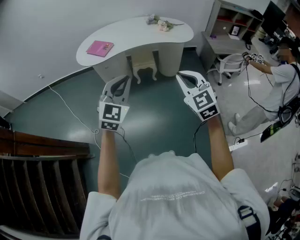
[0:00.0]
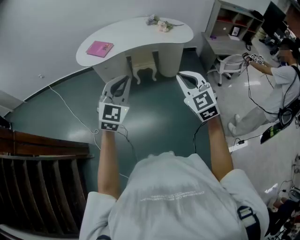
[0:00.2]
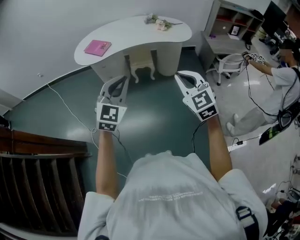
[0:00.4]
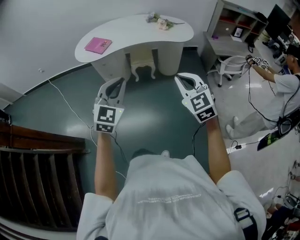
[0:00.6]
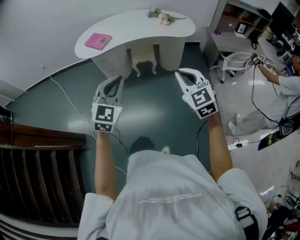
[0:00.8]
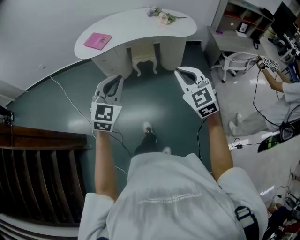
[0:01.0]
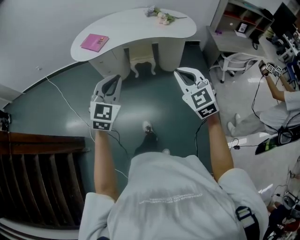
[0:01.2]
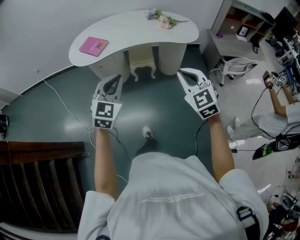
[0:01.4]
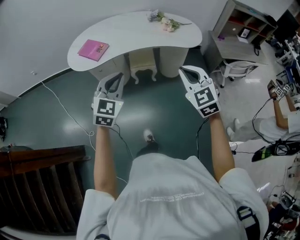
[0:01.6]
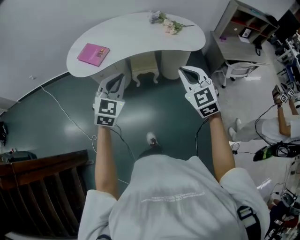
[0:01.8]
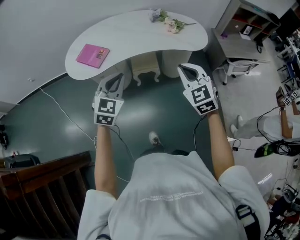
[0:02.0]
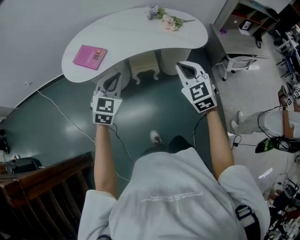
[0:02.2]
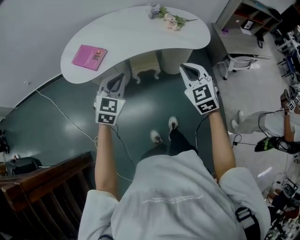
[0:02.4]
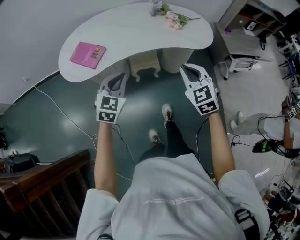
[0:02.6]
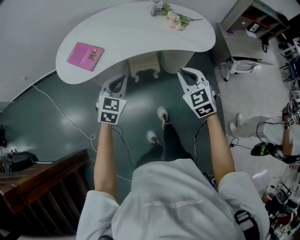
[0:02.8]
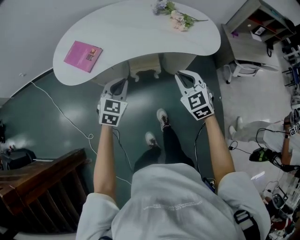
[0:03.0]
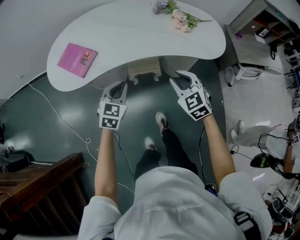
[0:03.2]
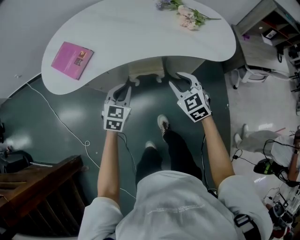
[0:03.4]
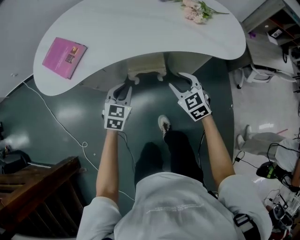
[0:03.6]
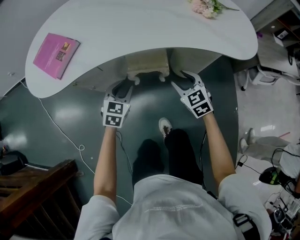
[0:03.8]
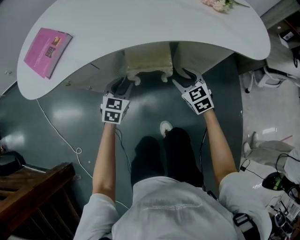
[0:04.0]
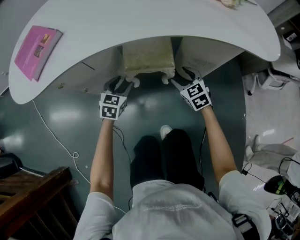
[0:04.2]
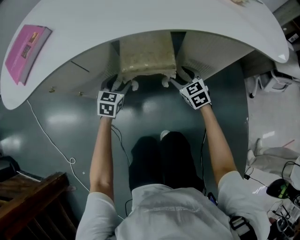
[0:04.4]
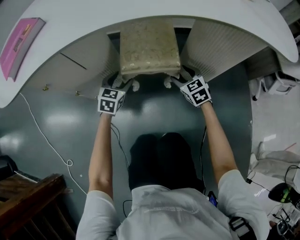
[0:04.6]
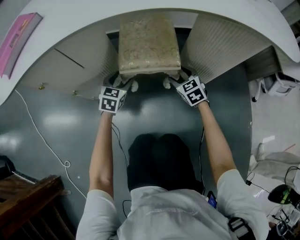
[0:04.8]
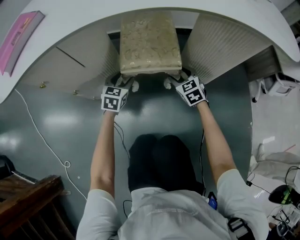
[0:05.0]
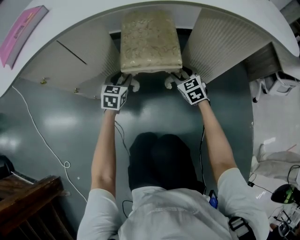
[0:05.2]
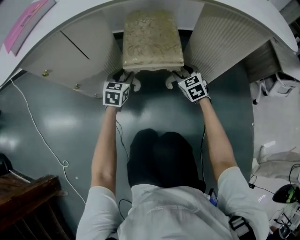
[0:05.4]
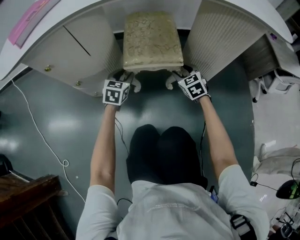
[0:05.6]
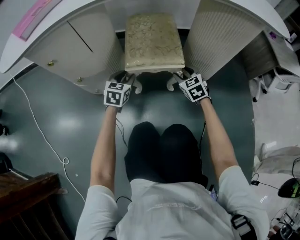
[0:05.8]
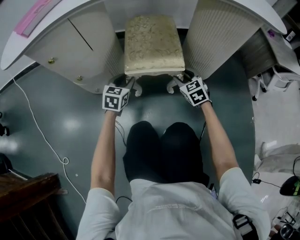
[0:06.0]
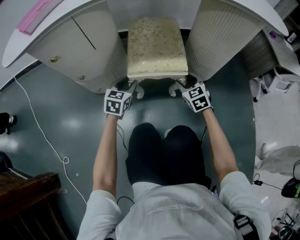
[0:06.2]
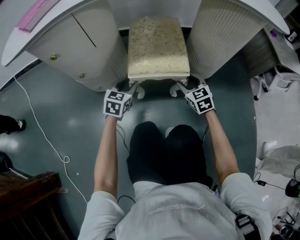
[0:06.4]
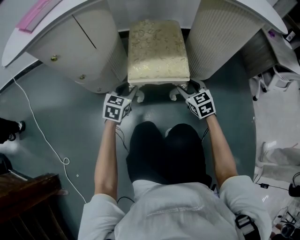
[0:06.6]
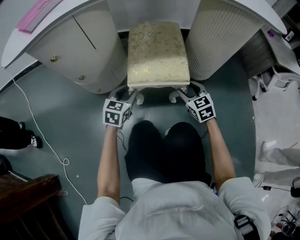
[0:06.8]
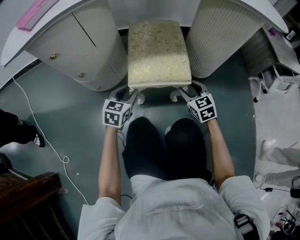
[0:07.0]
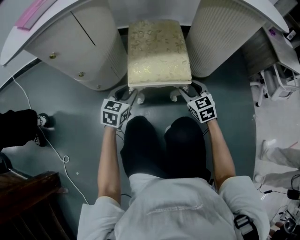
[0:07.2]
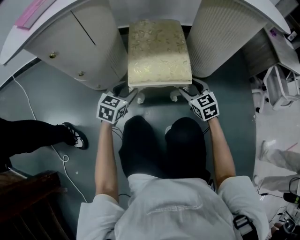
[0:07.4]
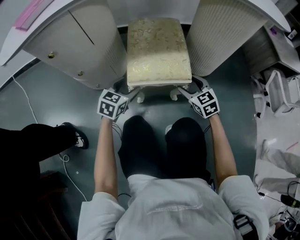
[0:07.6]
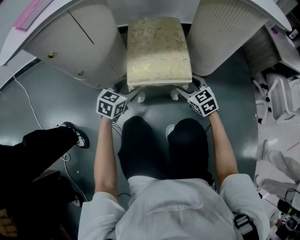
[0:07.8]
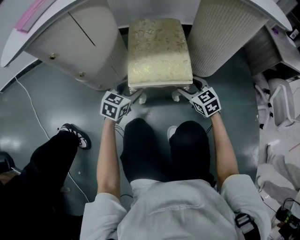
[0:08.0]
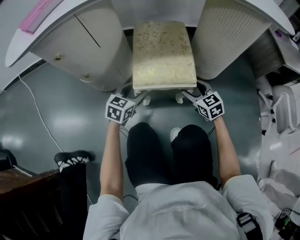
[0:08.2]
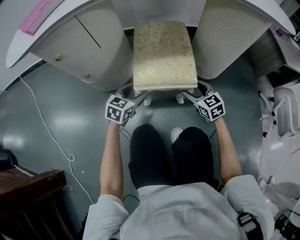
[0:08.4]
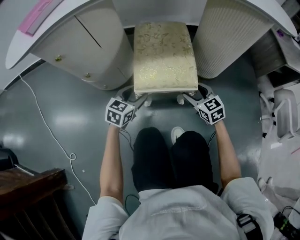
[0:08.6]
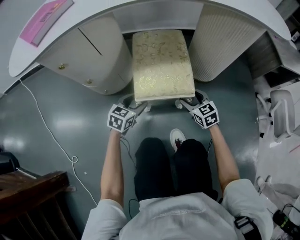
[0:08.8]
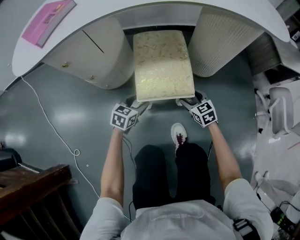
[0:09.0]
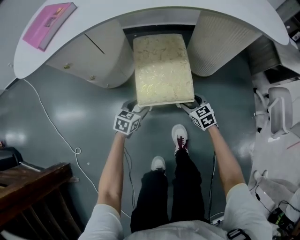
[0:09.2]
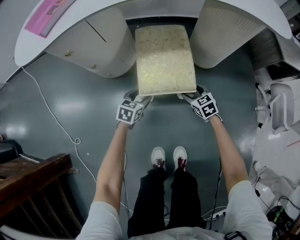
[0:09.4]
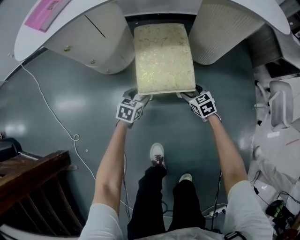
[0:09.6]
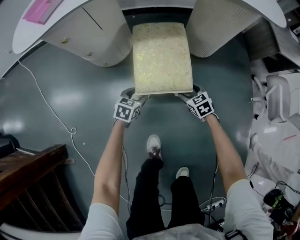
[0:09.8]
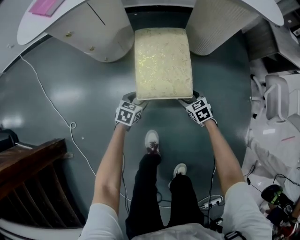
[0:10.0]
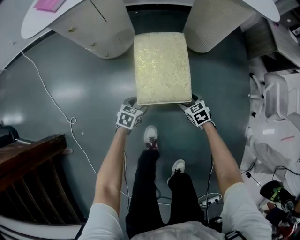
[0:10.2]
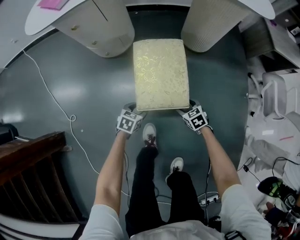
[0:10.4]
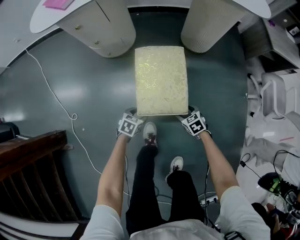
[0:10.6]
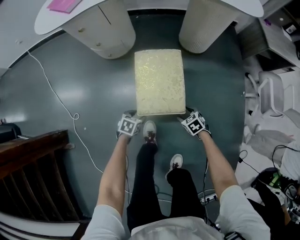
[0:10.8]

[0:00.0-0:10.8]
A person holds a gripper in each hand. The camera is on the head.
0:00.0 to 0:01.6: The grippers both shift forward by approximately 20 cm.
0:01.6 to 0:03.0: The two grippers go roughly 25 cm forward and downward.
0:03.0 to 0:04.6: The grippers both shift downward and forward by about 60 cm. The right gripper opens its fingers, while the left gripper opens.
0:04.6 to 0:06.2: Both grippers move backward, roughly 10 cm. The left gripper closes its fingers.
0:06.2 to 0:07.8: The left gripper opens its fingers.
0:07.8 to 0:09.2: Both grippers travel together backward, approximately 10 cm.
0:09.2 to 0:10.8: The grippers both shift backward by approximately 30 cm. The left gripper rotates about 20 degrees, while the right gripper turns by roughly 20 degrees.

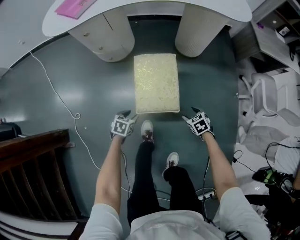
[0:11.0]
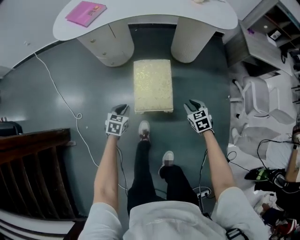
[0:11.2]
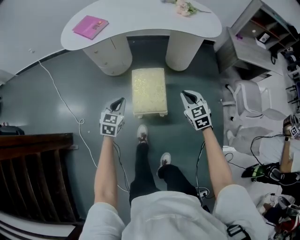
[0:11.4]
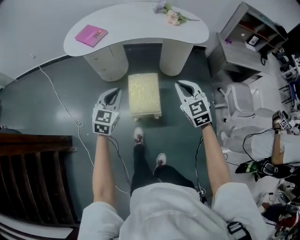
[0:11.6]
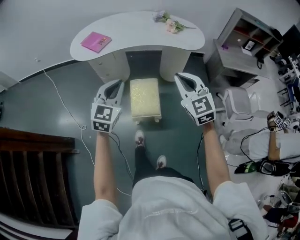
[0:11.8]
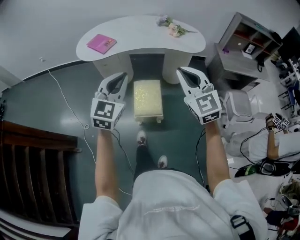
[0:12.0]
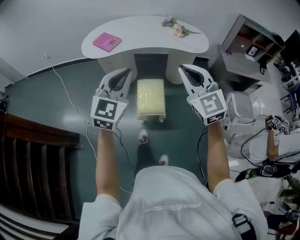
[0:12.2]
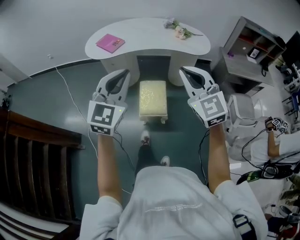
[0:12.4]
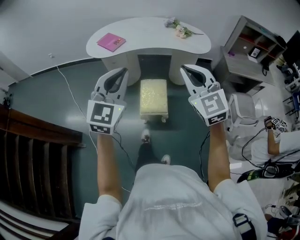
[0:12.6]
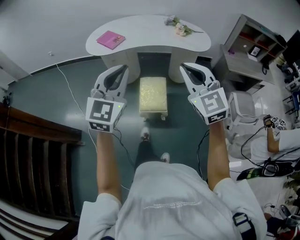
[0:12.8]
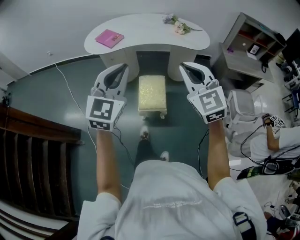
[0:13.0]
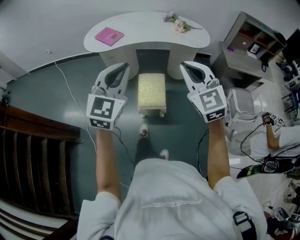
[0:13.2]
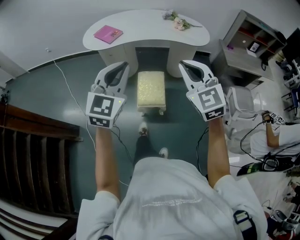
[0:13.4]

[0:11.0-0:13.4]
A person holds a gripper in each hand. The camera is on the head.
0:11.0 to 0:12.2: Both grippers move upward, roughly 70 cm. The right gripper tips its fingers upward by roughly 60 degrees, and closes. The left gripper points its fingers roughly 50 degrees further upward, and closes up.
0:12.2 to 0:13.4: The grippers move only a little.

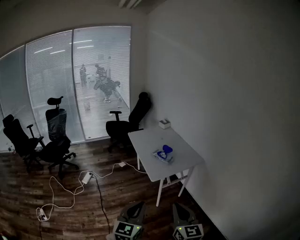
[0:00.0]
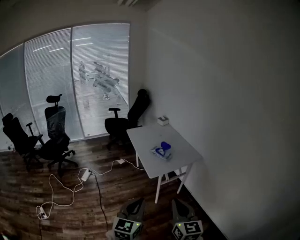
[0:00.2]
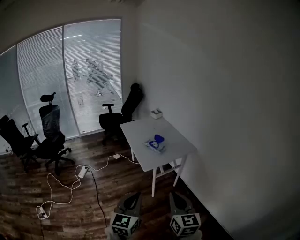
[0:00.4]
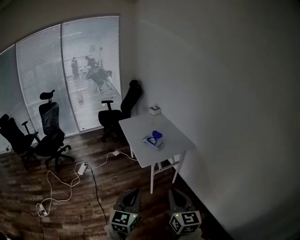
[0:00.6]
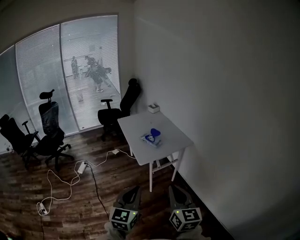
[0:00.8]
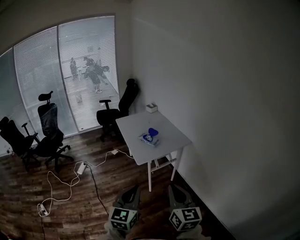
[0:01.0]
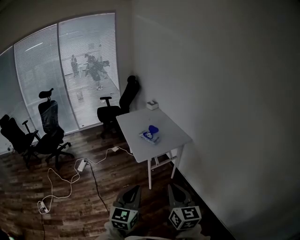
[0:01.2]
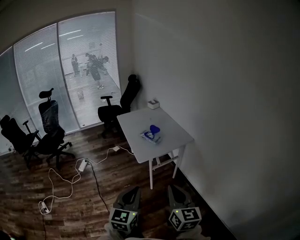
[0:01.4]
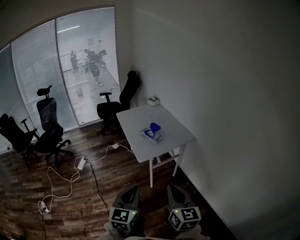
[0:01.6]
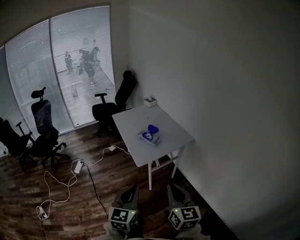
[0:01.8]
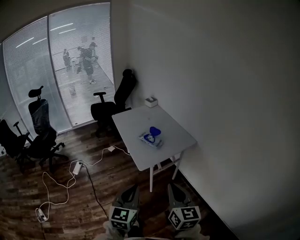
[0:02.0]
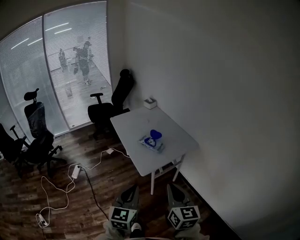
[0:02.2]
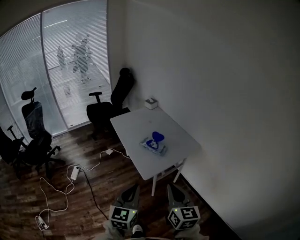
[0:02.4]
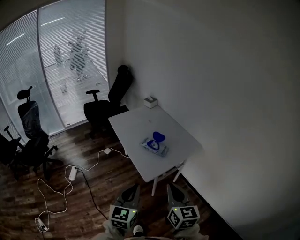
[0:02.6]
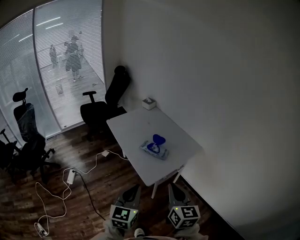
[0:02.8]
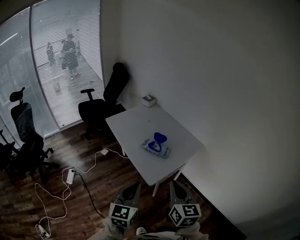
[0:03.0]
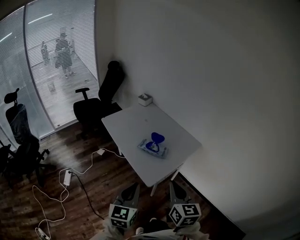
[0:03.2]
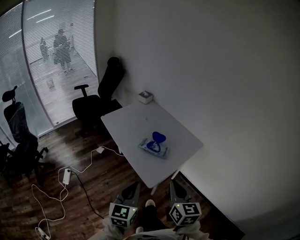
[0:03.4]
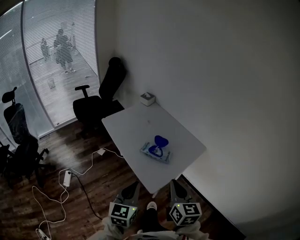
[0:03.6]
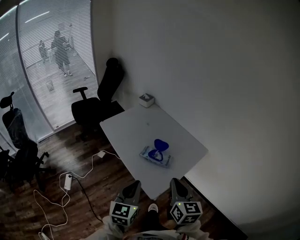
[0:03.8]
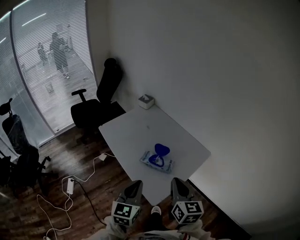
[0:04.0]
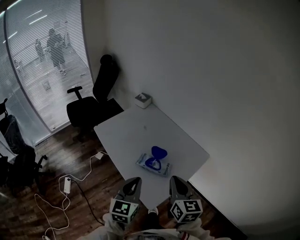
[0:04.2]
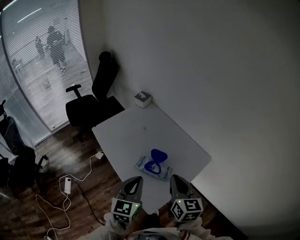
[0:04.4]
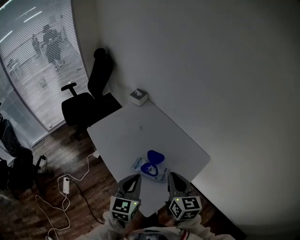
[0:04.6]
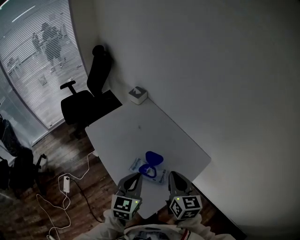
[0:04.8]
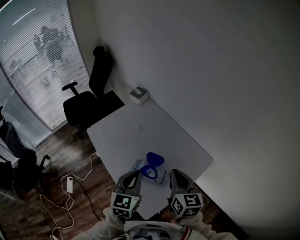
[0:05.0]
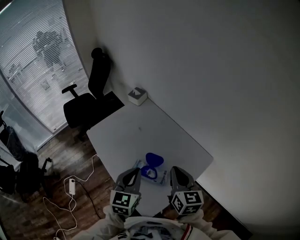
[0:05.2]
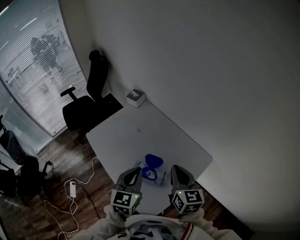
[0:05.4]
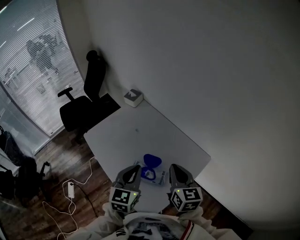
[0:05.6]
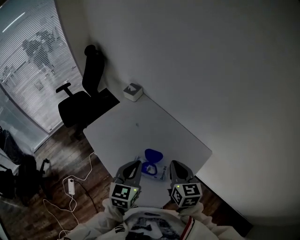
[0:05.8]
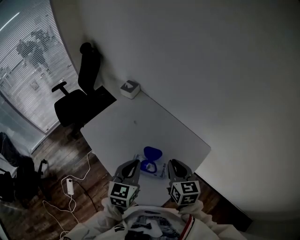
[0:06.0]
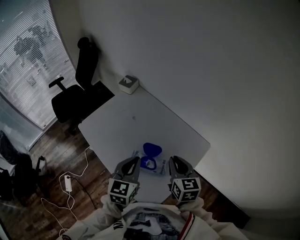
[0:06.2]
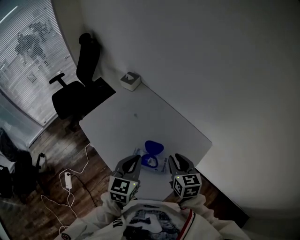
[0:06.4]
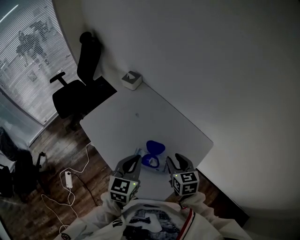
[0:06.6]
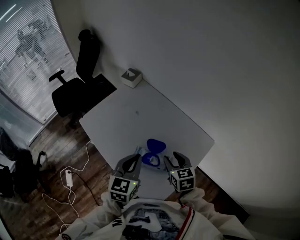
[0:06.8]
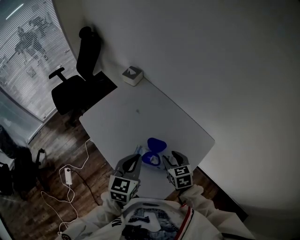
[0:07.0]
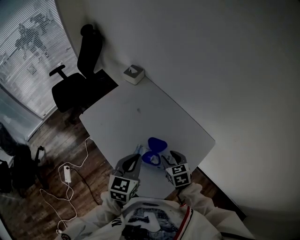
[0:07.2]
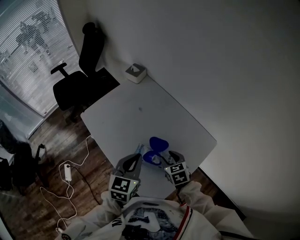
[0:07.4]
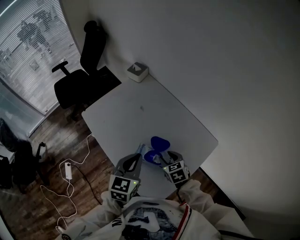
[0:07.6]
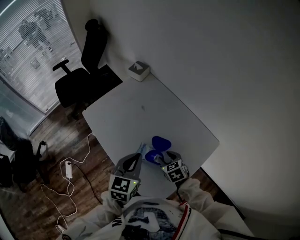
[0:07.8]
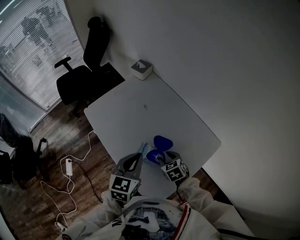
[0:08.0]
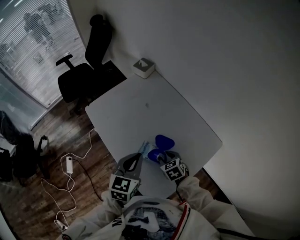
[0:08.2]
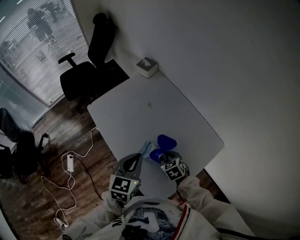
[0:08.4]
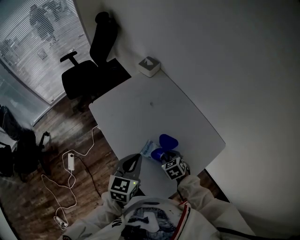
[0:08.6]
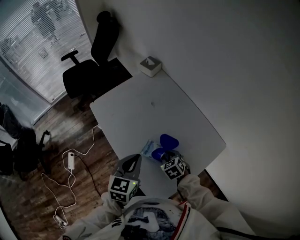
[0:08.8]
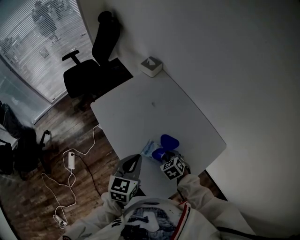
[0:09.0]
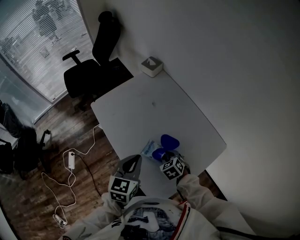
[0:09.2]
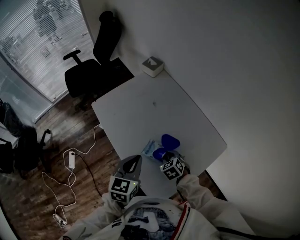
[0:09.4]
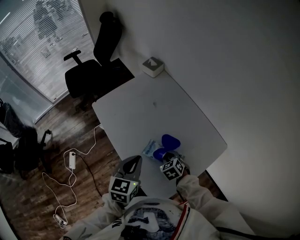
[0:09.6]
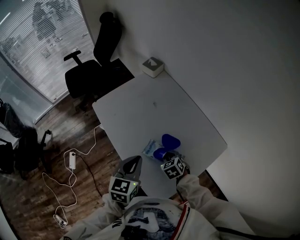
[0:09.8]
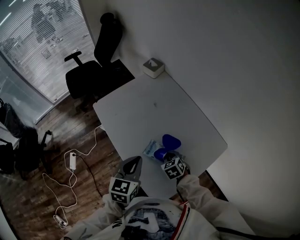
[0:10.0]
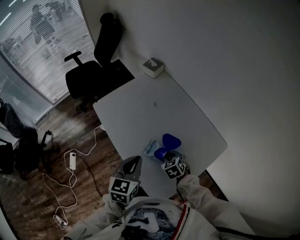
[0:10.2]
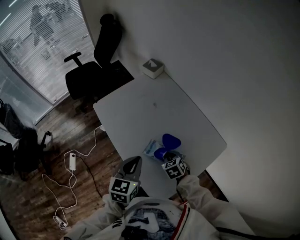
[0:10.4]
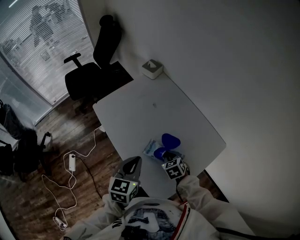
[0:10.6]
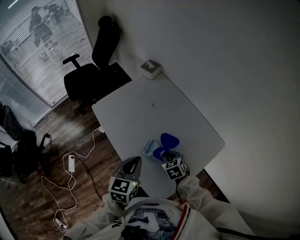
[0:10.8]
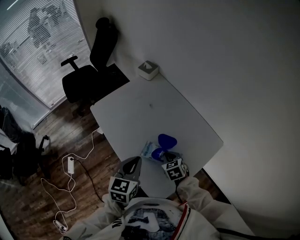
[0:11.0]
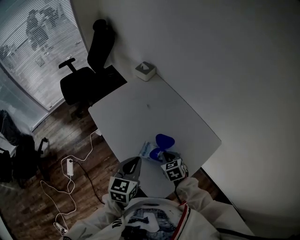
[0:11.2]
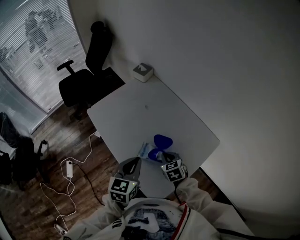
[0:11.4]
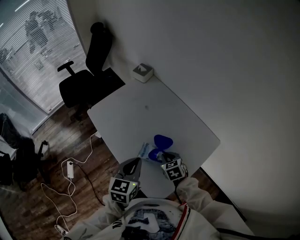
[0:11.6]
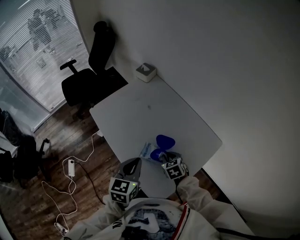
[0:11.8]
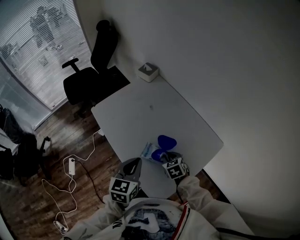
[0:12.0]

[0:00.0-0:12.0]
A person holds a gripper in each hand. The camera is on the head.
0:00.0 to 0:01.6: The grippers both shift to the right by about 5 cm.
0:01.6 to 0:03.0: Both grippers move forward and to the left, about 30 cm.
0:03.0 to 0:04.4: The grippers both shift forward by approximately 25 cm.
0:04.4 to 0:06.0: The right gripper goes about 10 cm forward and downward. The left gripper is displaced forward by approximately 10 cm.
0:06.0 to 0:07.6: The right gripper shifts some 15 cm downward, changes its angle by roughly 40 degrees, and opens up.
0:07.6 to 0:09.0: The right gripper shifts some 5 cm downward.
0:09.0 to 0:10.4: The right gripper closes up.
0:10.4 to 0:12.0: There are only small adjustments of the grippers.
